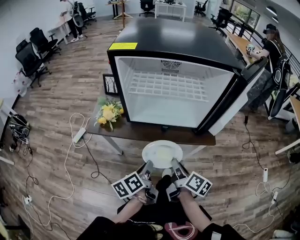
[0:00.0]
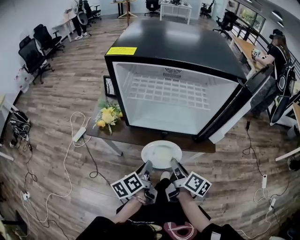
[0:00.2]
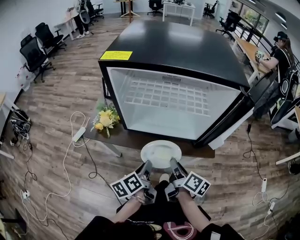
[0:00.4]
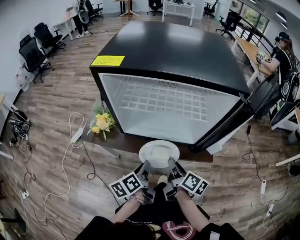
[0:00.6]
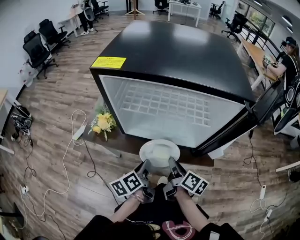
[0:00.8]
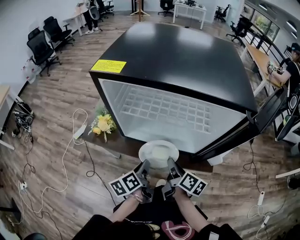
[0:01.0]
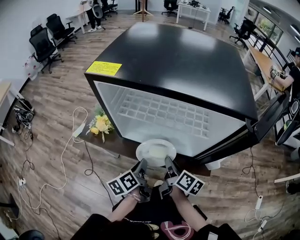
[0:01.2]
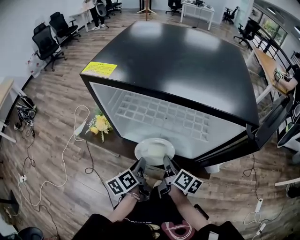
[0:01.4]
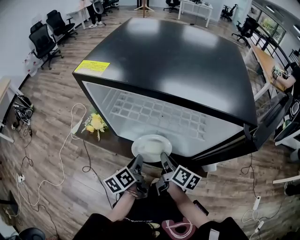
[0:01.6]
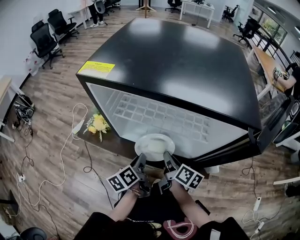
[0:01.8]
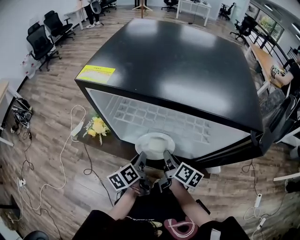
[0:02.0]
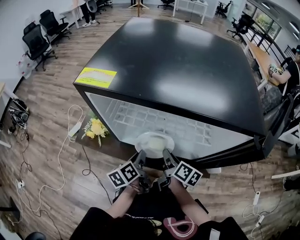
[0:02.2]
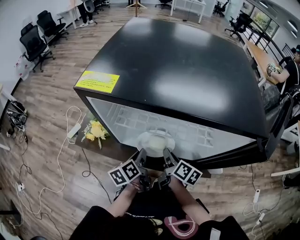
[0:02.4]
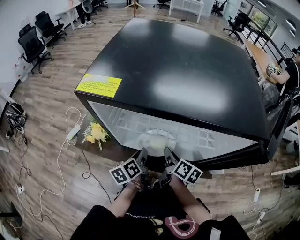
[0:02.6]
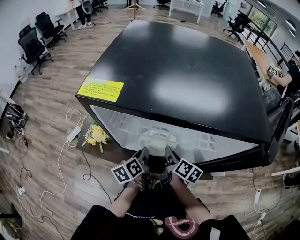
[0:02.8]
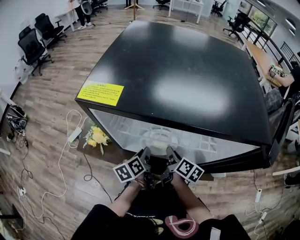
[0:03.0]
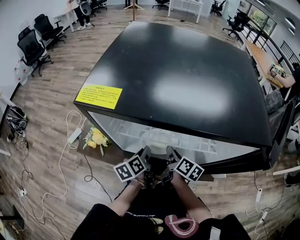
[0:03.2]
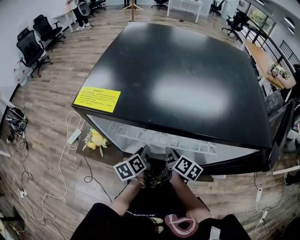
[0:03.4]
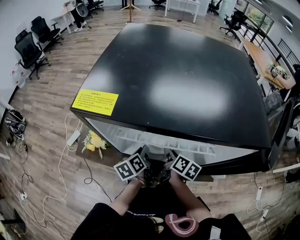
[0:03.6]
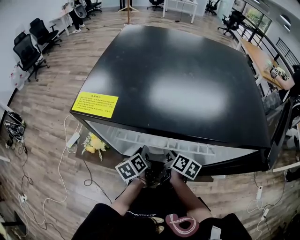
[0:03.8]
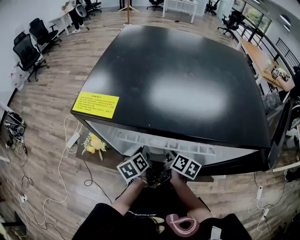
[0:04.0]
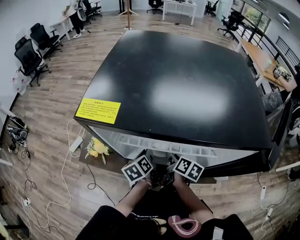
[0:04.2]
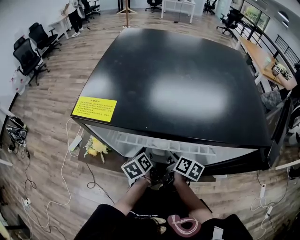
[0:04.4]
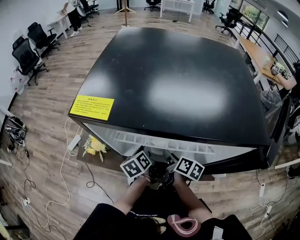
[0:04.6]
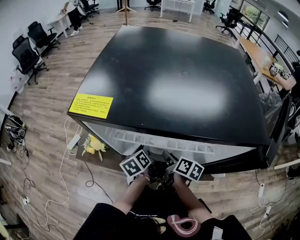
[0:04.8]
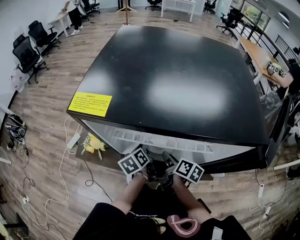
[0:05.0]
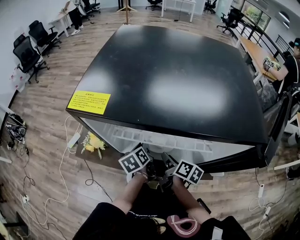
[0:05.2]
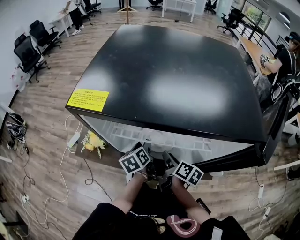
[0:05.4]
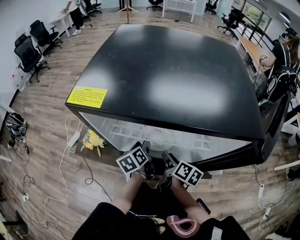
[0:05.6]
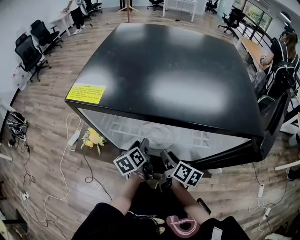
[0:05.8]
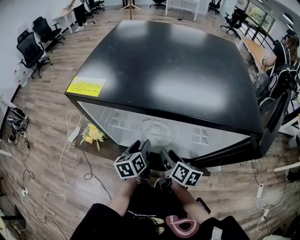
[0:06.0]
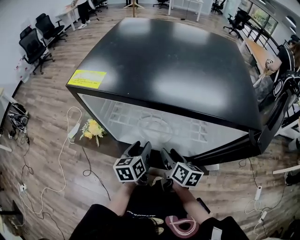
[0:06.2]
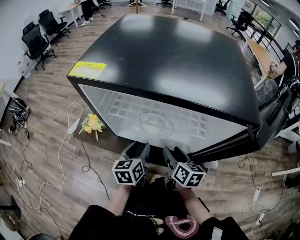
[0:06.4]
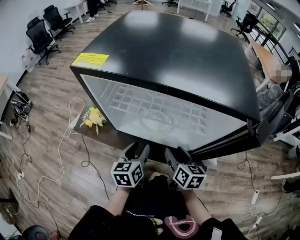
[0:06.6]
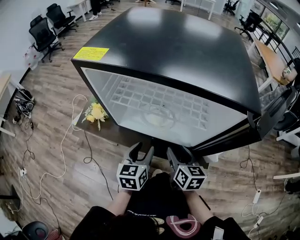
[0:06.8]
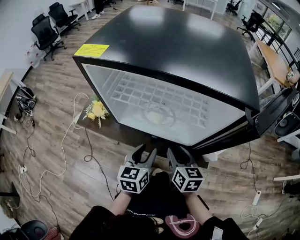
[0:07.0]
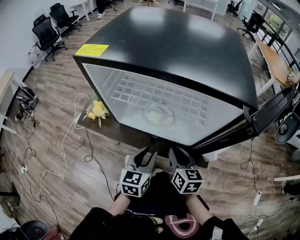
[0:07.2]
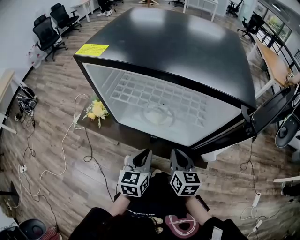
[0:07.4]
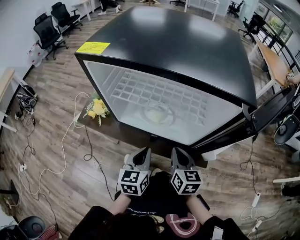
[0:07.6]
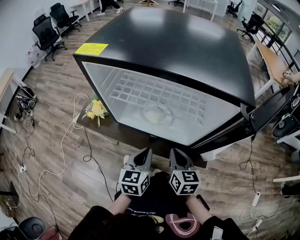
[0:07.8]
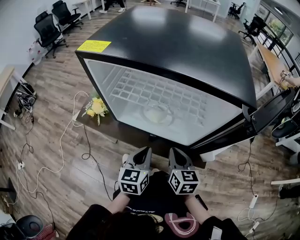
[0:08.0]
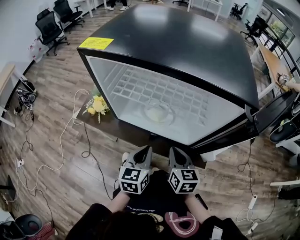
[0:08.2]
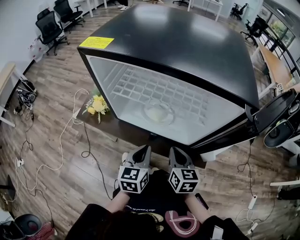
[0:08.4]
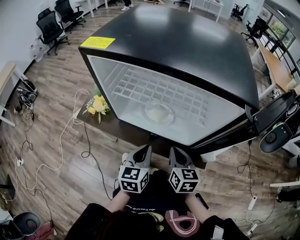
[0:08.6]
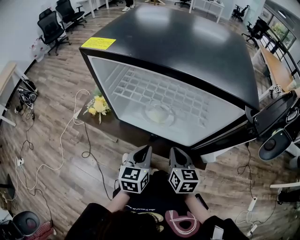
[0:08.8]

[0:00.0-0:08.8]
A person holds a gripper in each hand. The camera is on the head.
0:00.0 to 0:01.4: The grippers both shift forward by roughly 15 cm.
0:01.4 to 0:03.0: Both grippers travel together forward, about 10 cm.
0:03.0 to 0:04.4: There are only small adjustments of the grippers.
0:04.4 to 0:05.8: The left gripper opens.
0:05.8 to 0:07.4: The right gripper shifts roughly 10 cm backward, changes its angle by about 40 degrees, and closes; the left gripper shifts about 15 cm backward, rotates roughly 30 degrees, and closes its fingers.
0:07.4 to 0:08.8: Neither gripper changes place.

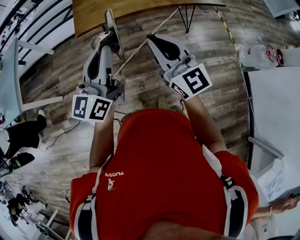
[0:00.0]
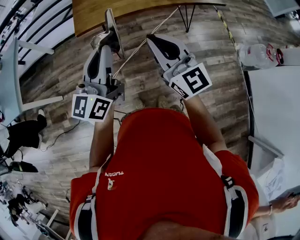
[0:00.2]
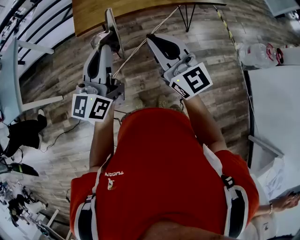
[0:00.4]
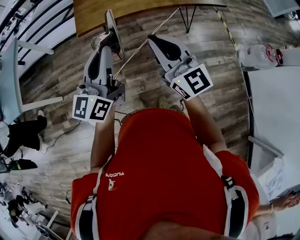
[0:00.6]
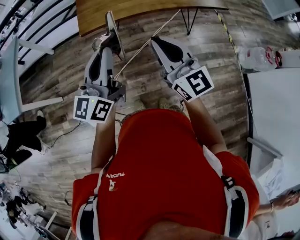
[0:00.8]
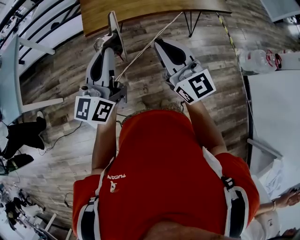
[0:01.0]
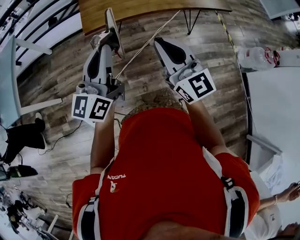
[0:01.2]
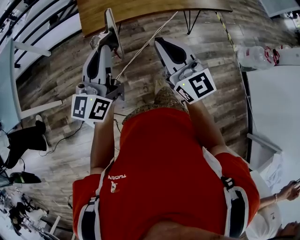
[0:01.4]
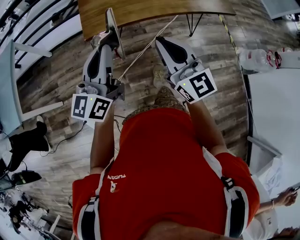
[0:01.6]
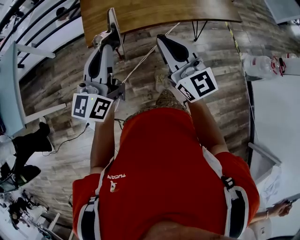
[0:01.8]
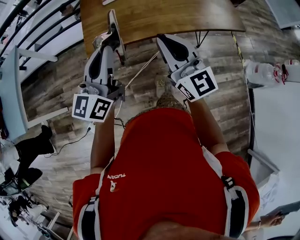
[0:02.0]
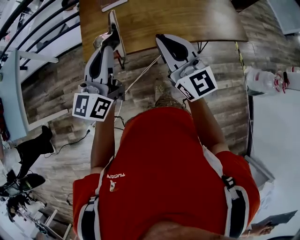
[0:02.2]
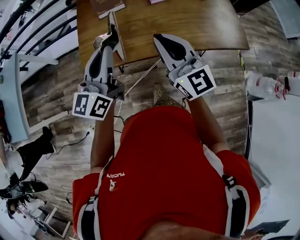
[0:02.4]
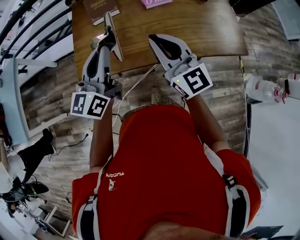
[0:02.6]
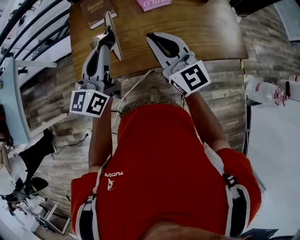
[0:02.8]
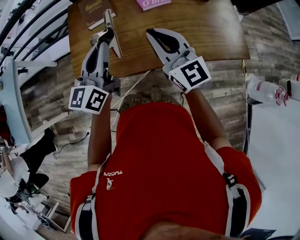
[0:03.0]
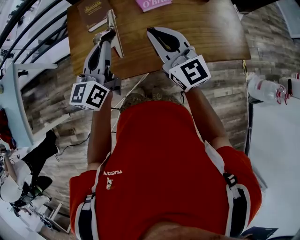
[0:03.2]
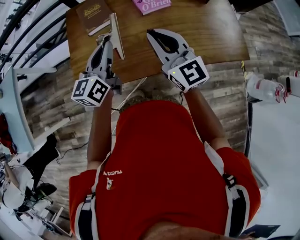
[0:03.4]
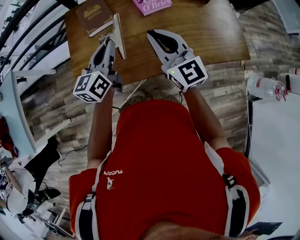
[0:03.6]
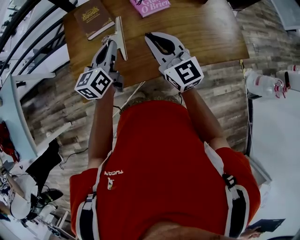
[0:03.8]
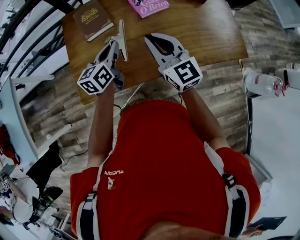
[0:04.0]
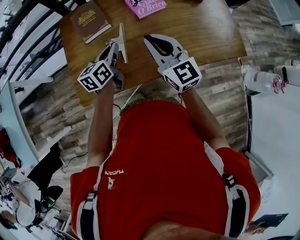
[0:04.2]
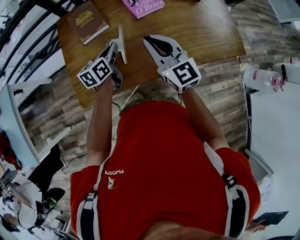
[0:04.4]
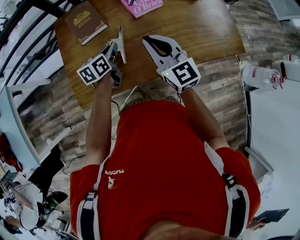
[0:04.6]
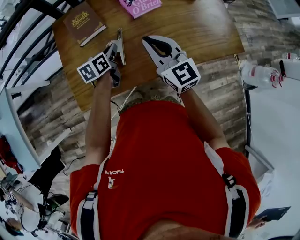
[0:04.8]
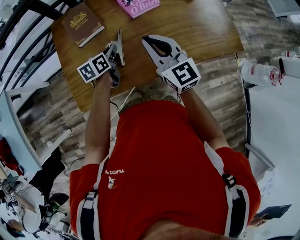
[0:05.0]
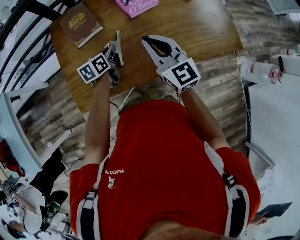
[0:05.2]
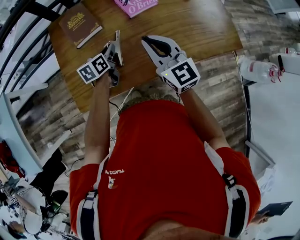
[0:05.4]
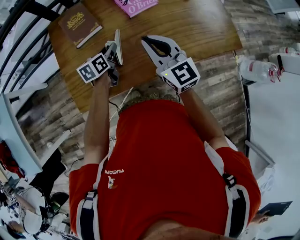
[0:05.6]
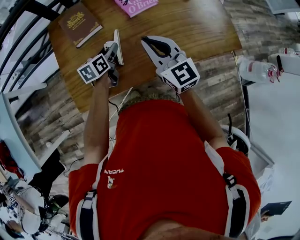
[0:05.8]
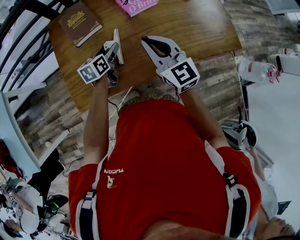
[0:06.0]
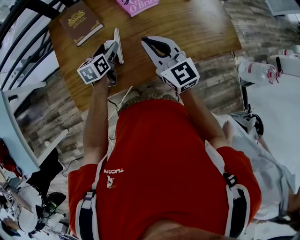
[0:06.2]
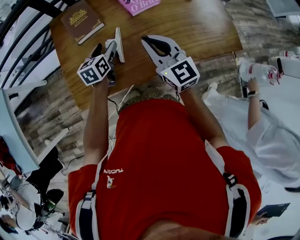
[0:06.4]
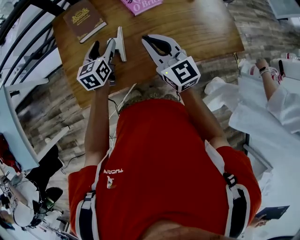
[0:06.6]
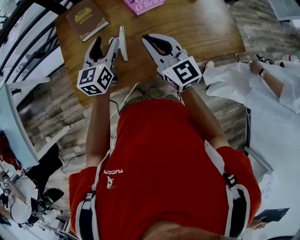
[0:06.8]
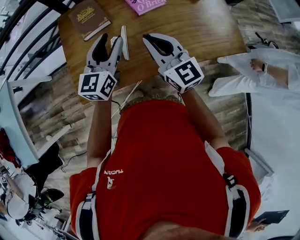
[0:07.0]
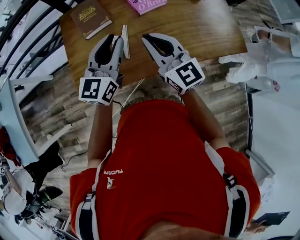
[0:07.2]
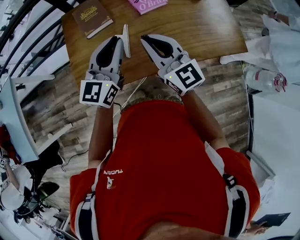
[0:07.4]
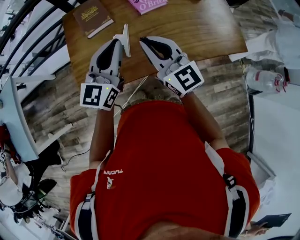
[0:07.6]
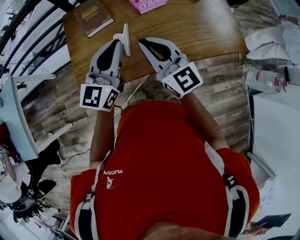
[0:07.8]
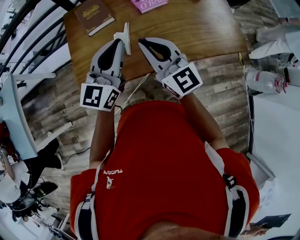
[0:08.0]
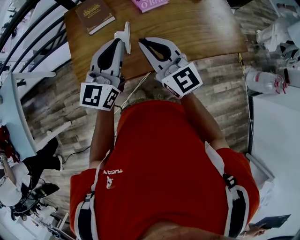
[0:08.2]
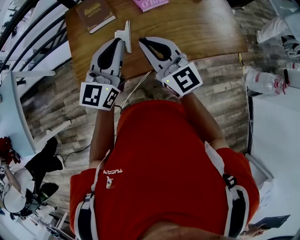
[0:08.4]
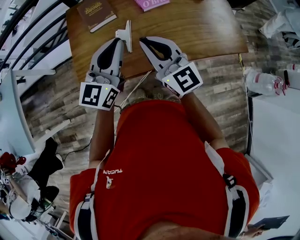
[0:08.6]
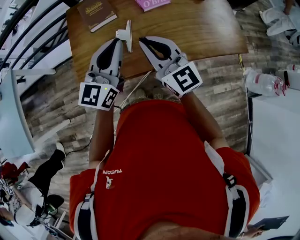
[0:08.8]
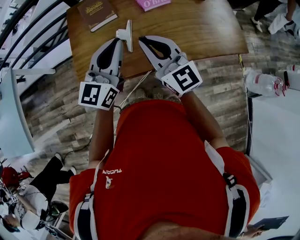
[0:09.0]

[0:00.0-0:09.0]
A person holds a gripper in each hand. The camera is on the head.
0:00.0 to 0:01.6: Both grippers travel together forward and to the left, about 10 cm.
0:01.6 to 0:03.0: The left gripper travels forward and to the right by about 35 cm. Meanwhile the right gripper moves forward, roughly 35 cm.
0:03.0 to 0:04.4: The right gripper is displaced downward and forward by about 5 cm. Meanwhile the left gripper heads downward and forward, covering about 20 cm, and changes its angle by approximately 30 degrees.
0:04.4 to 0:06.0: The left gripper heads downward, covering roughly 5 cm, and opens its fingers.
0:06.0 to 0:07.6: The right gripper travels upward by approximately 5 cm; the left gripper moves upward and backward, roughly 25 cm, tips its fingers upward by approximately 30 degrees, and closes.
0:07.6 to 0:09.0: There are only small adjustments of the grippers.

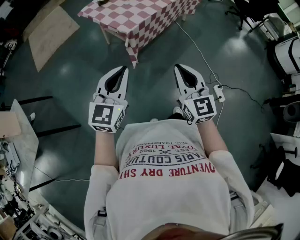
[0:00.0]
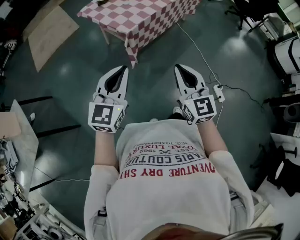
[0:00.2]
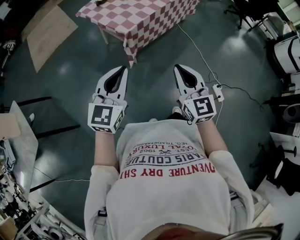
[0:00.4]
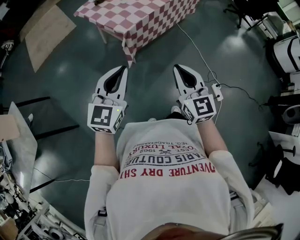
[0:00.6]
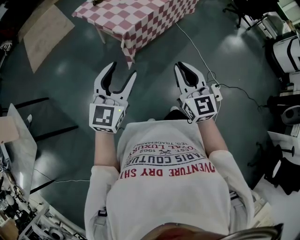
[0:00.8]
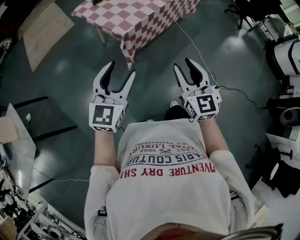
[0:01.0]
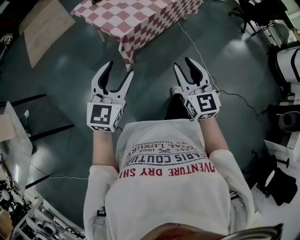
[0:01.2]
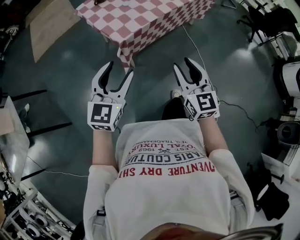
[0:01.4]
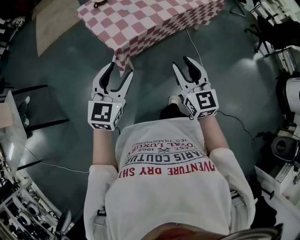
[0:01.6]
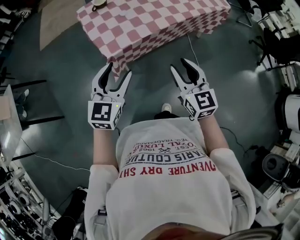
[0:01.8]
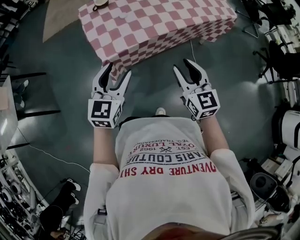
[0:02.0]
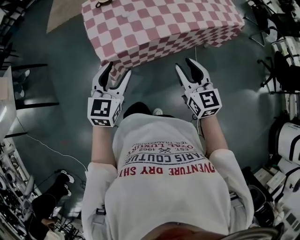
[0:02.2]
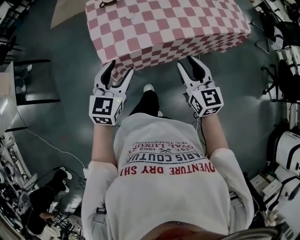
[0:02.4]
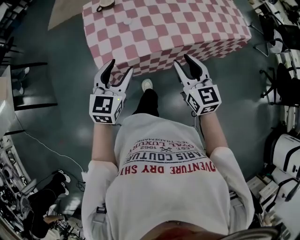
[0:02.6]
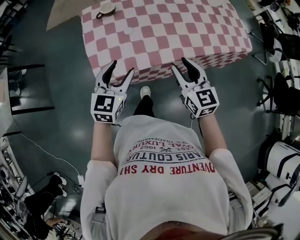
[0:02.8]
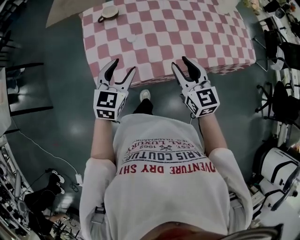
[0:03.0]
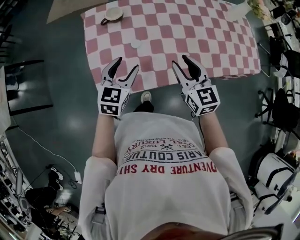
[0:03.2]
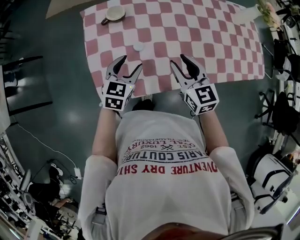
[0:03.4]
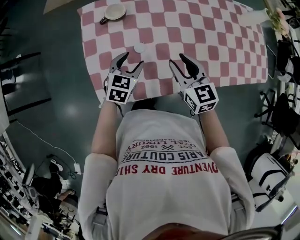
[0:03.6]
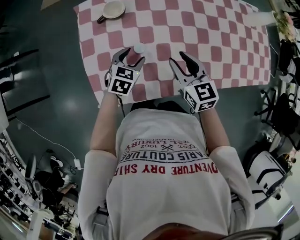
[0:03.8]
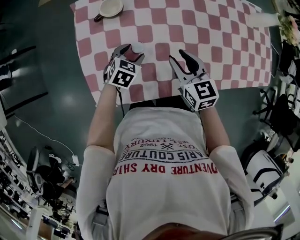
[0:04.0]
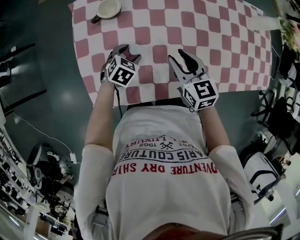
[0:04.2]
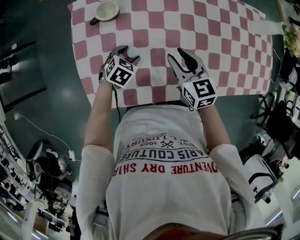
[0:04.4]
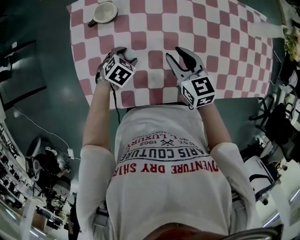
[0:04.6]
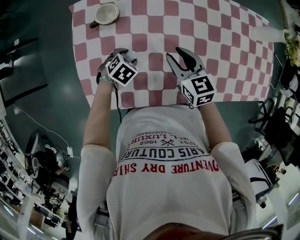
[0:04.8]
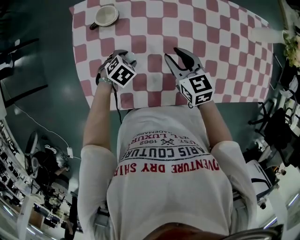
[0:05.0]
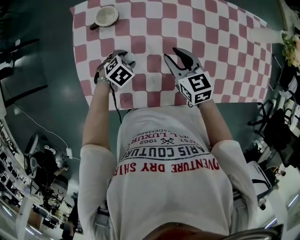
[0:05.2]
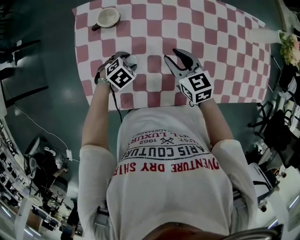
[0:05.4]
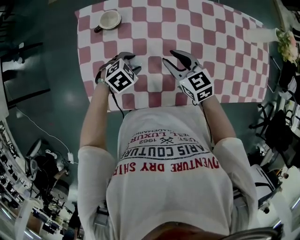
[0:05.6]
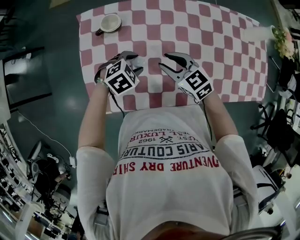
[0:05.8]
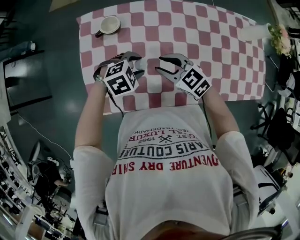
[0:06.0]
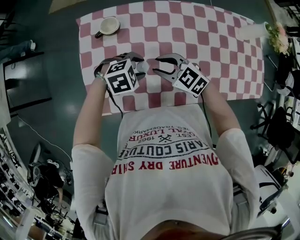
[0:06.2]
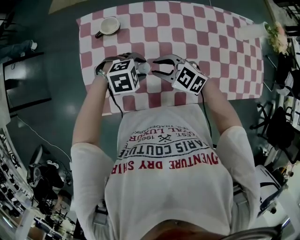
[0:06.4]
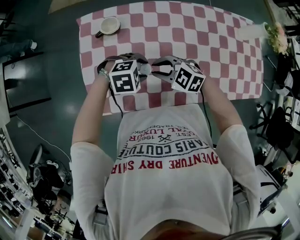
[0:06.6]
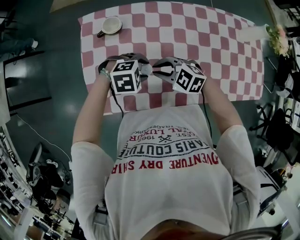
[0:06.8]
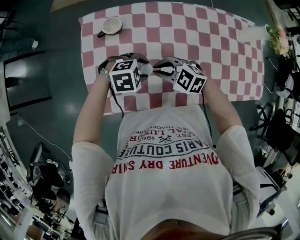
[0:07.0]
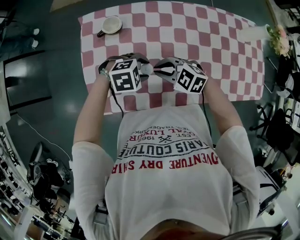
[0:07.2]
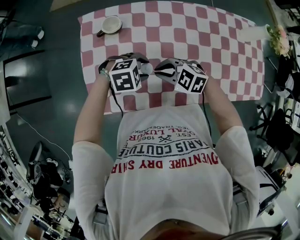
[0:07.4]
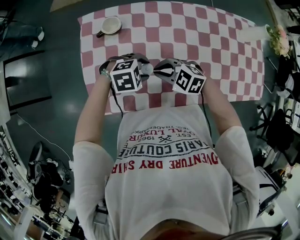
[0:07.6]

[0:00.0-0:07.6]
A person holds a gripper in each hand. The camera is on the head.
0:00.0 to 0:01.6: Both grippers move forward and to the right, approximately 25 cm. The left gripper opens up; the right gripper opens up.
0:01.6 to 0:03.0: The grippers both shift forward by roughly 35 cm. The right gripper changes its angle by roughly 30 degrees; the left gripper turns by some 20 degrees.
0:03.0 to 0:04.6: The right gripper travels forward and downward by about 25 cm, and turns by approximately 20 degrees; the left gripper heads downward and forward, covering about 30 cm, and angles its fingers downward, by roughly 40 degrees.
0:04.6 to 0:06.0: The left gripper moves upward, approximately 10 cm, and rotates roughly 30 degrees. Meanwhile the right gripper shifts by some 5 cm, and swivels roughly 30 degrees.
0:06.0 to 0:07.6: The right gripper swivels about 20 degrees, and closes its fingers.
